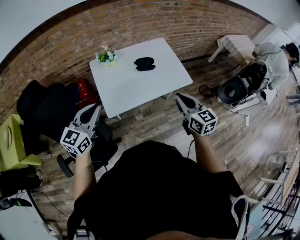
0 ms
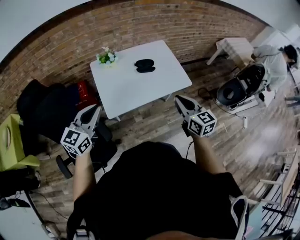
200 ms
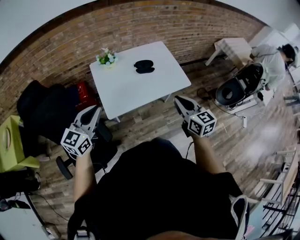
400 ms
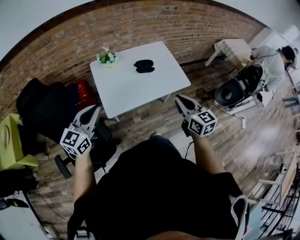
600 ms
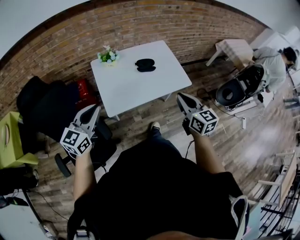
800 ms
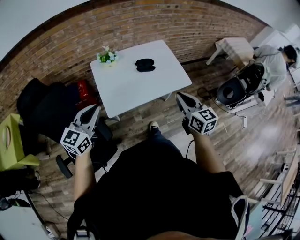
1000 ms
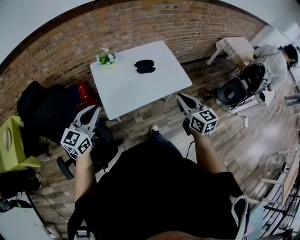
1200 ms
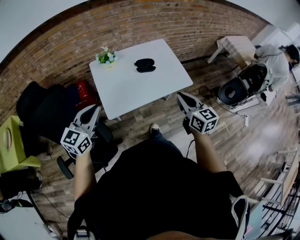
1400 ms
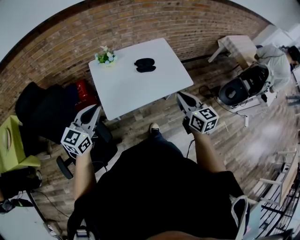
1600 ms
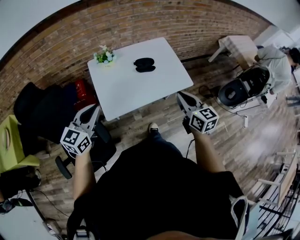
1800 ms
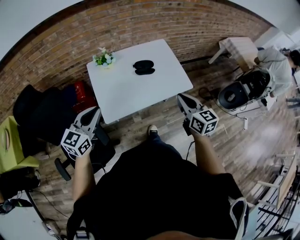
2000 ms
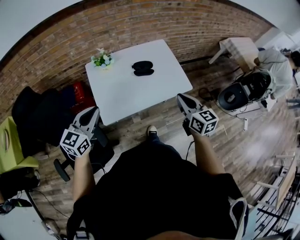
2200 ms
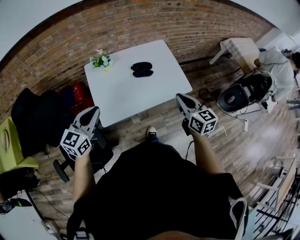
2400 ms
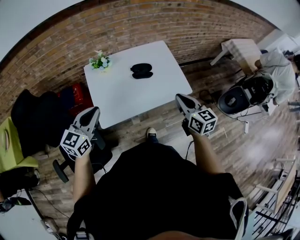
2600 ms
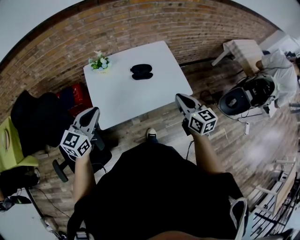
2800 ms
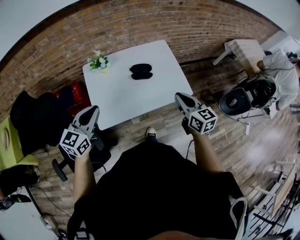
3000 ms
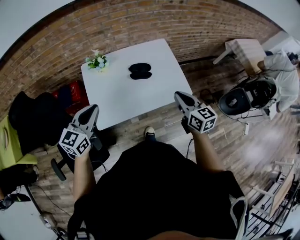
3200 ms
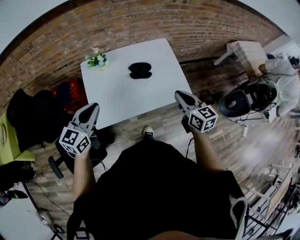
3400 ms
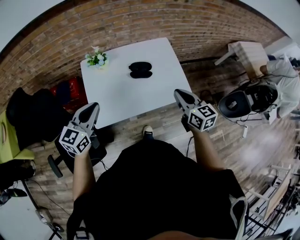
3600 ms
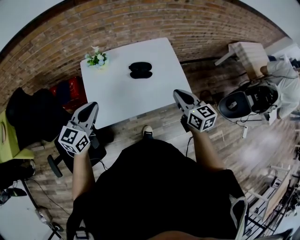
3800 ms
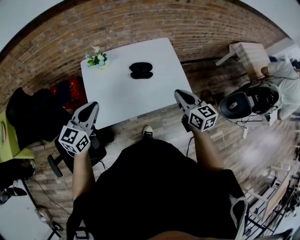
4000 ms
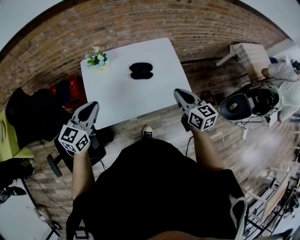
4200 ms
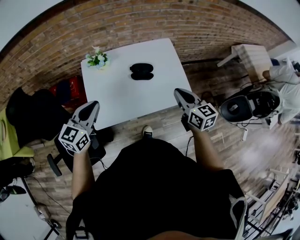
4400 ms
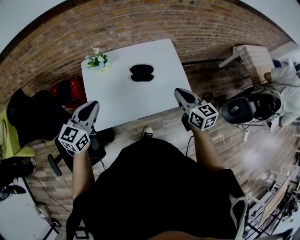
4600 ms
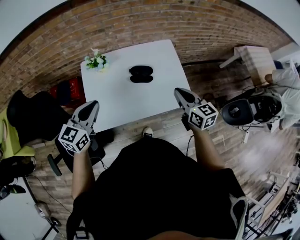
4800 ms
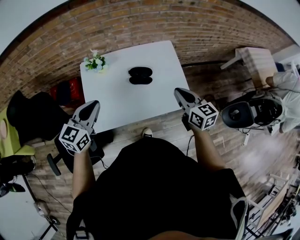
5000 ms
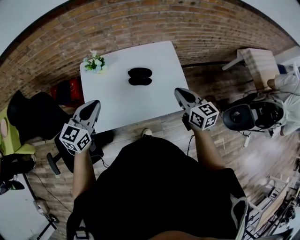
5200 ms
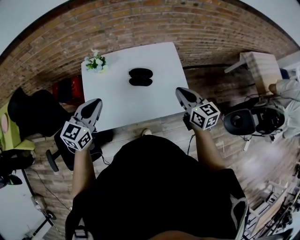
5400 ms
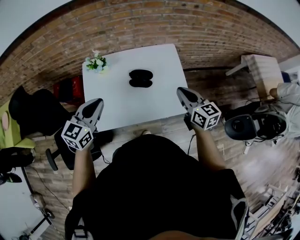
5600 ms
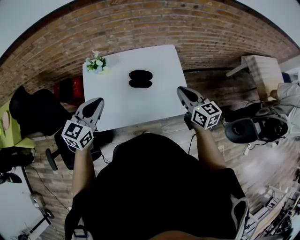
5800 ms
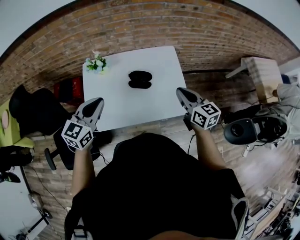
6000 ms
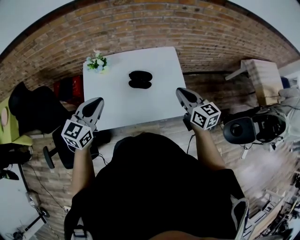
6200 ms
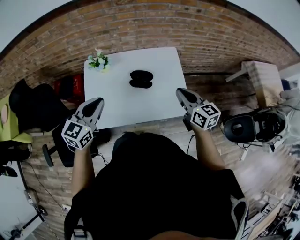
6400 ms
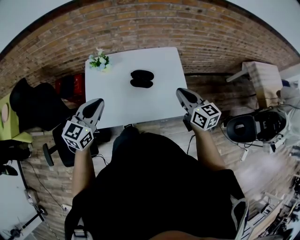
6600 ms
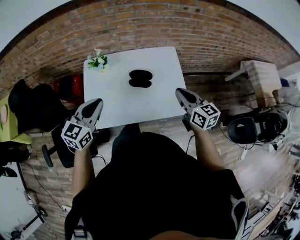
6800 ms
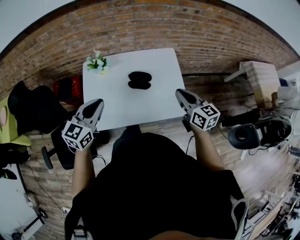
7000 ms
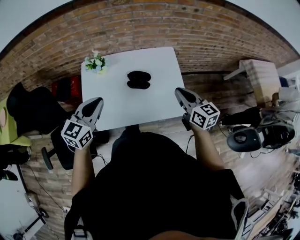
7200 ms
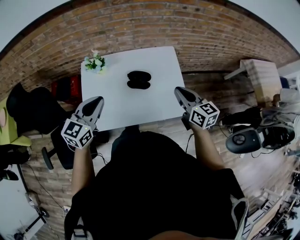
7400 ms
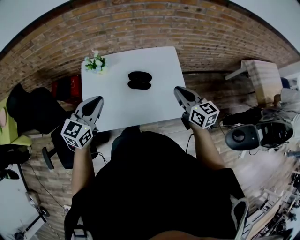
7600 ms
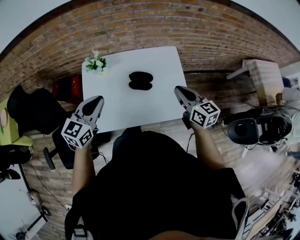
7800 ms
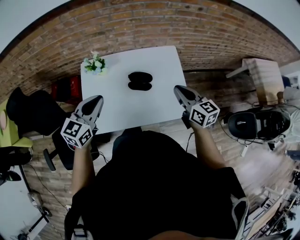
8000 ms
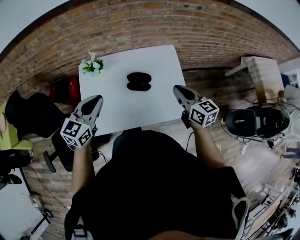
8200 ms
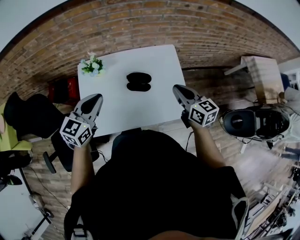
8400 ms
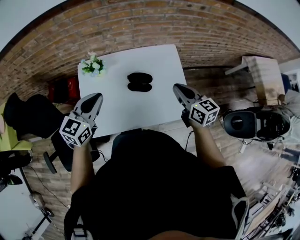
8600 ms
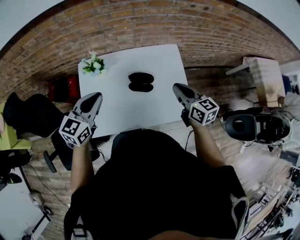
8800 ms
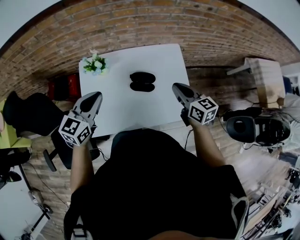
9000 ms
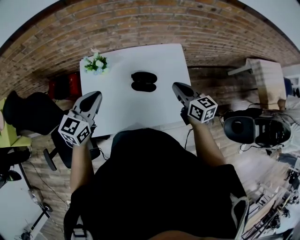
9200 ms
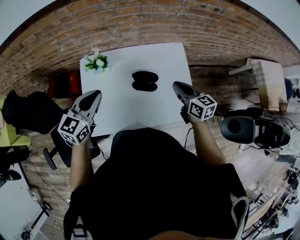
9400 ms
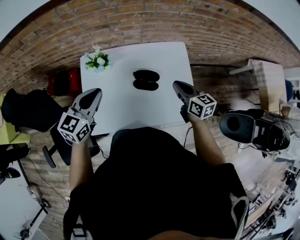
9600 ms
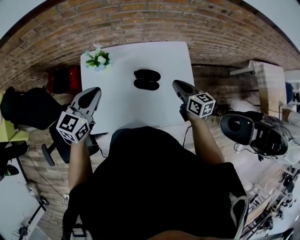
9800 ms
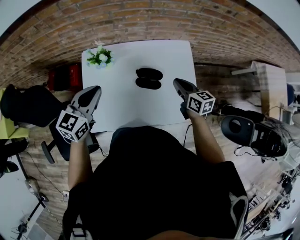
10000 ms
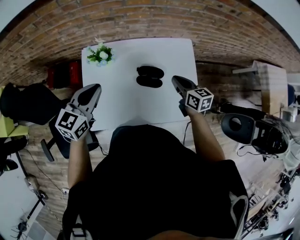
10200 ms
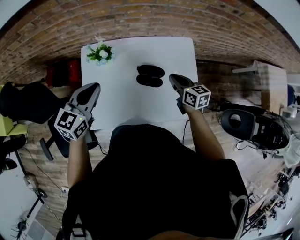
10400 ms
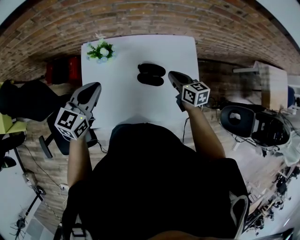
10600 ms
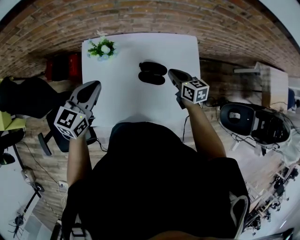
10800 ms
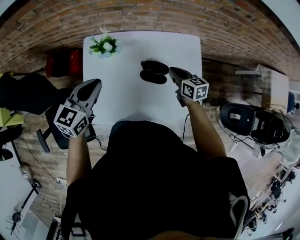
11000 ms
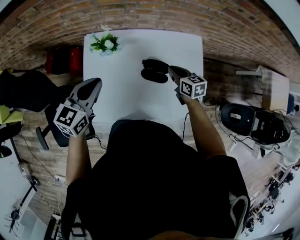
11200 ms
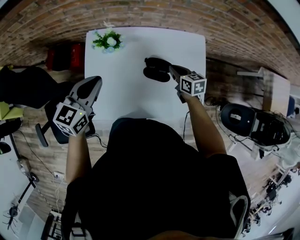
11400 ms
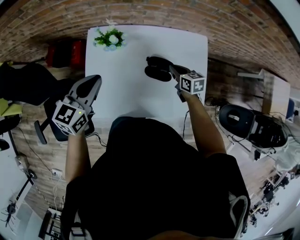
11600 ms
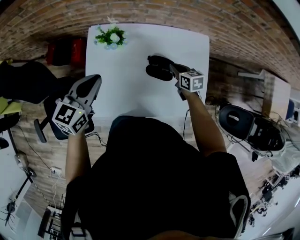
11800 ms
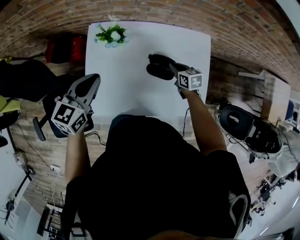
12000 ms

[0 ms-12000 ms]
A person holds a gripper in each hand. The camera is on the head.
0 ms to 1600 ms: The grippers move only a little.
1600 ms to 3000 ms: The grippers both shift forward and to the right by approximately 15 cm.
3000 ms to 4400 ms: The two grippers go approximately 5 cm forward.
4400 ms to 6000 ms: The right gripper goes about 10 cm forward and to the right. Meanwhile the left gripper moves to the right, roughly 10 cm.
6000 ms to 7600 ms: The grippers move only a little.
7600 ms to 9000 ms: Both grippers travel together forward, roughly 10 cm.
9000 ms to 10400 ms: The left gripper moves approximately 5 cm; the right gripper heads downward and forward, covering some 15 cm.
10400 ms to 12000 ms: The left gripper changes place by about 5 cm; the right gripper moves downward, roughly 15 cm.

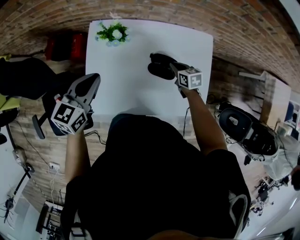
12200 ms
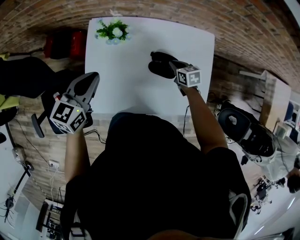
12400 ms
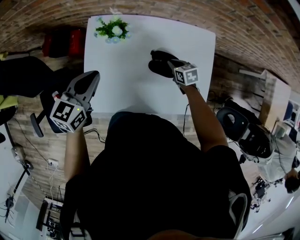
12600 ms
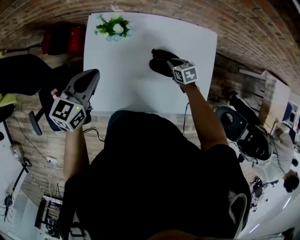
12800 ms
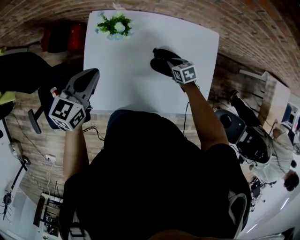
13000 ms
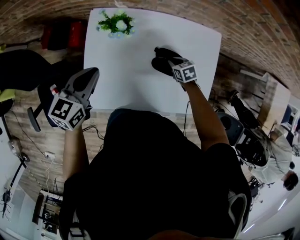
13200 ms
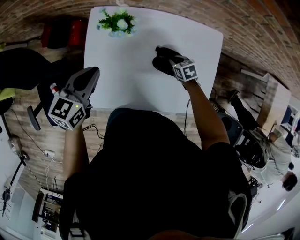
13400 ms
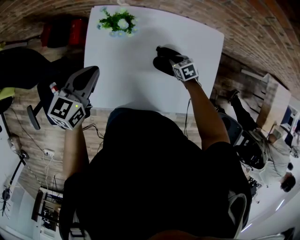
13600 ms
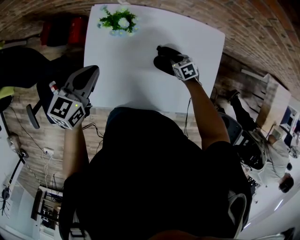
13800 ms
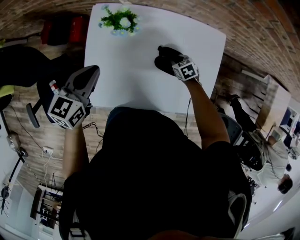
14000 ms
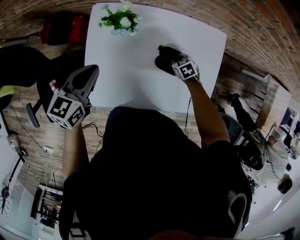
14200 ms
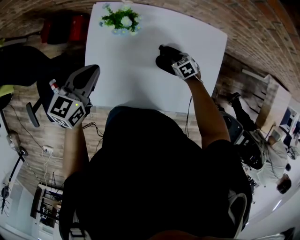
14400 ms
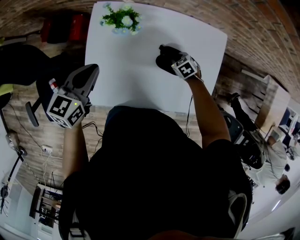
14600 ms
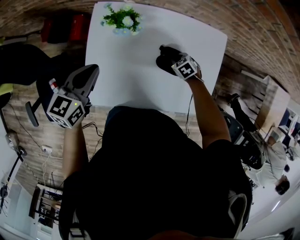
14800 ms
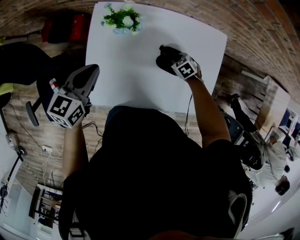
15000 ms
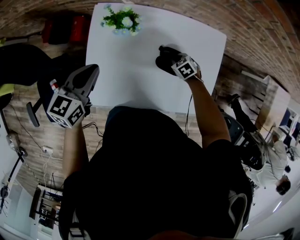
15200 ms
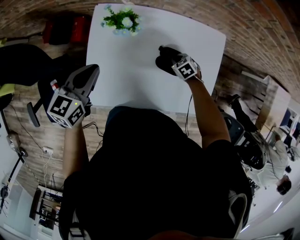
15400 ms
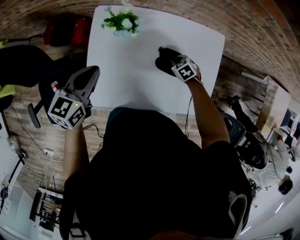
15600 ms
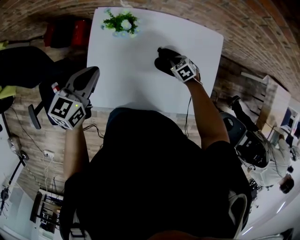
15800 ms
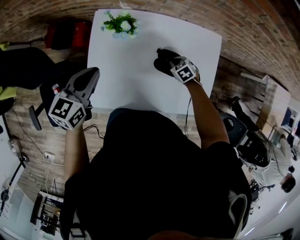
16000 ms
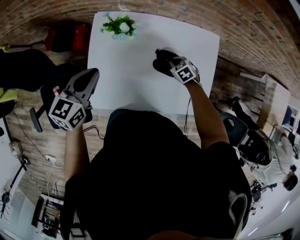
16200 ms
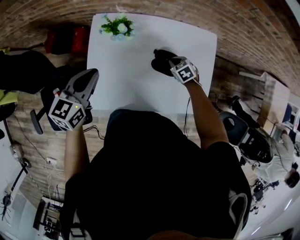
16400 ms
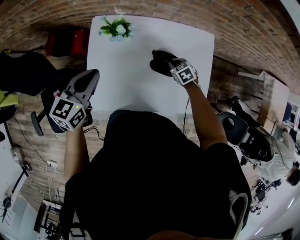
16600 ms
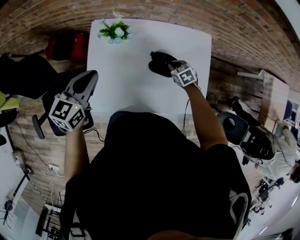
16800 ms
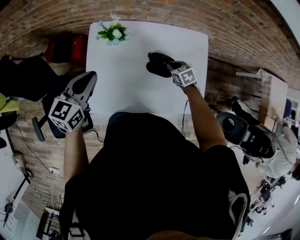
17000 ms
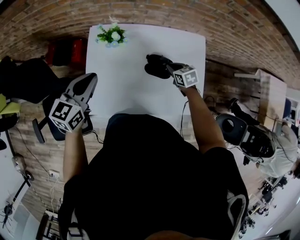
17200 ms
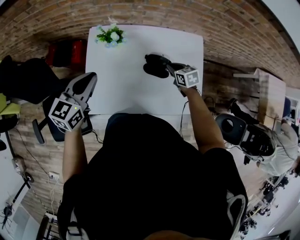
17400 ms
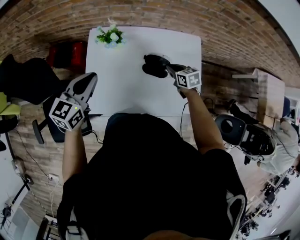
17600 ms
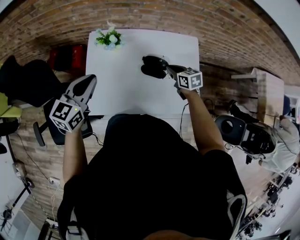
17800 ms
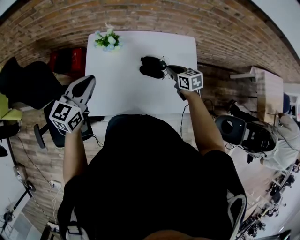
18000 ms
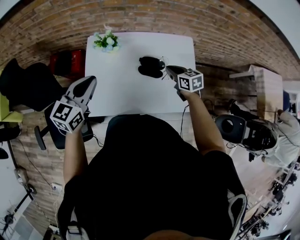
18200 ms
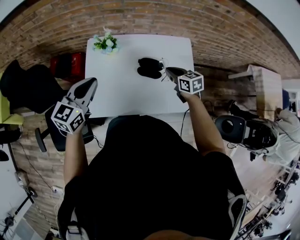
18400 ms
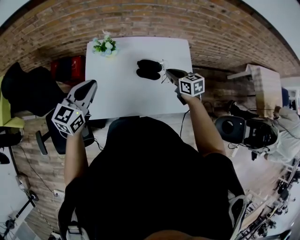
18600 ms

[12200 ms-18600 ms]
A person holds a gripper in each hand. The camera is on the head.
12200 ms to 13800 ms: The right gripper travels downward by about 10 cm, and rotates about 30 degrees; the left gripper travels downward by roughly 5 cm.
13800 ms to 15400 ms: The grippers stay close to where they were, moving slightly.
15400 ms to 17000 ms: The right gripper heads upward, covering some 10 cm, and rotates roughly 20 degrees. Meanwhile the left gripper shifts about 5 cm upward.
17000 ms to 18600 ms: The right gripper goes about 20 cm upward and backward, and swivels roughly 30 degrees. Meanwhile the left gripper shifts approximately 10 cm backward and upward.

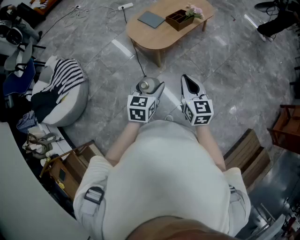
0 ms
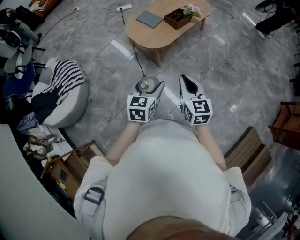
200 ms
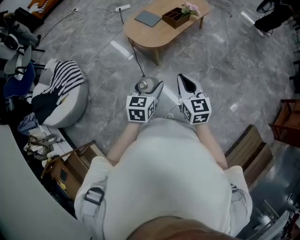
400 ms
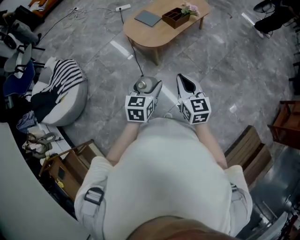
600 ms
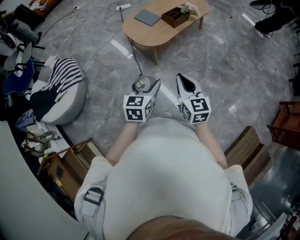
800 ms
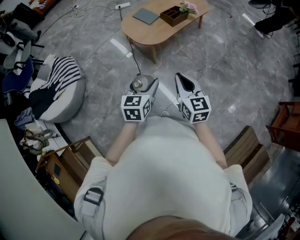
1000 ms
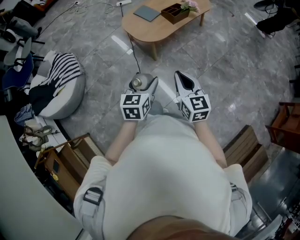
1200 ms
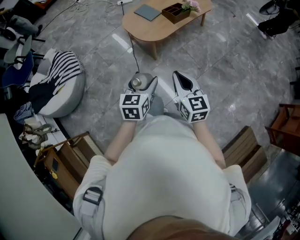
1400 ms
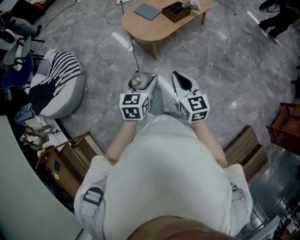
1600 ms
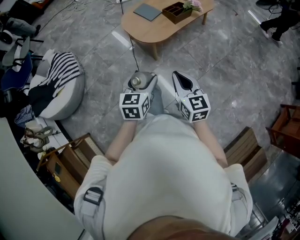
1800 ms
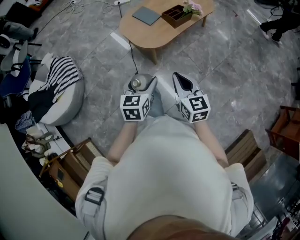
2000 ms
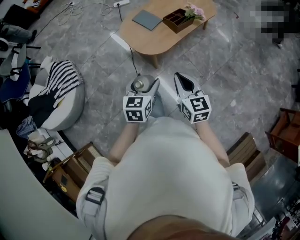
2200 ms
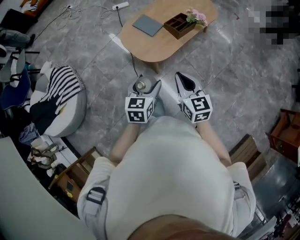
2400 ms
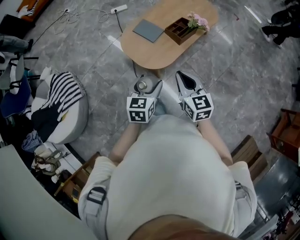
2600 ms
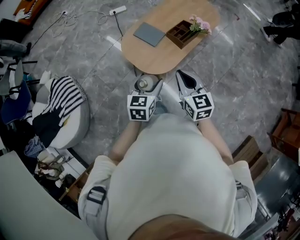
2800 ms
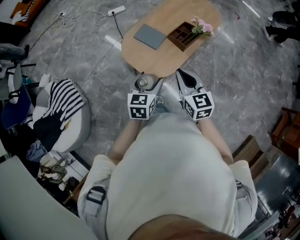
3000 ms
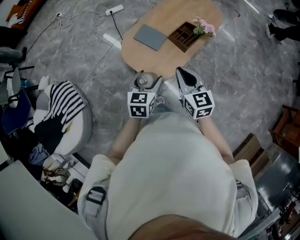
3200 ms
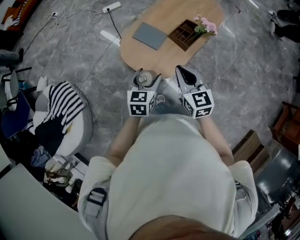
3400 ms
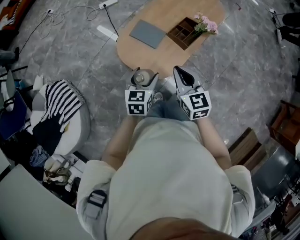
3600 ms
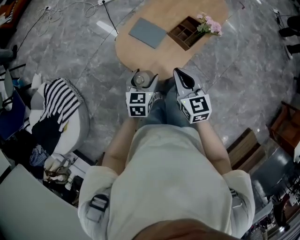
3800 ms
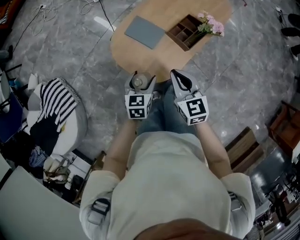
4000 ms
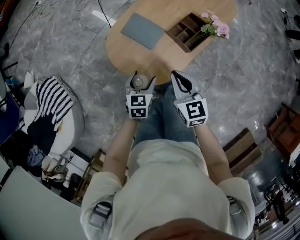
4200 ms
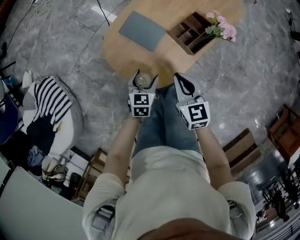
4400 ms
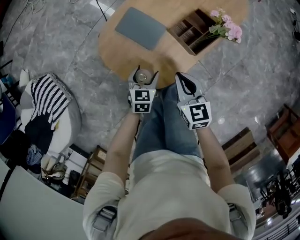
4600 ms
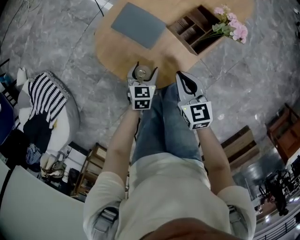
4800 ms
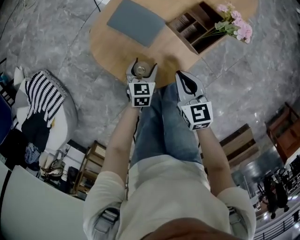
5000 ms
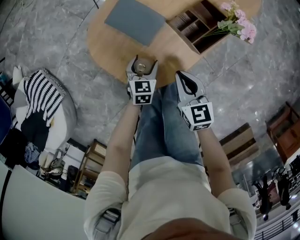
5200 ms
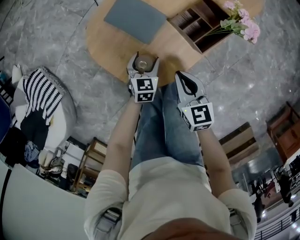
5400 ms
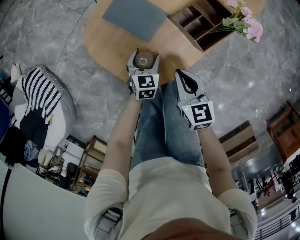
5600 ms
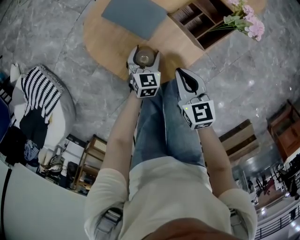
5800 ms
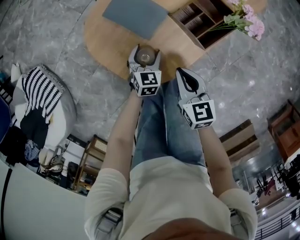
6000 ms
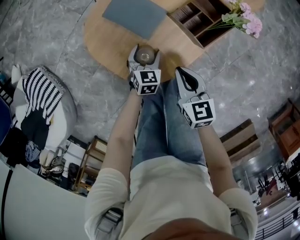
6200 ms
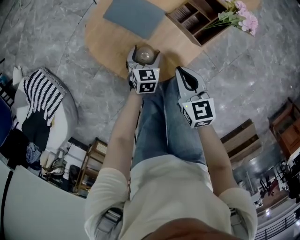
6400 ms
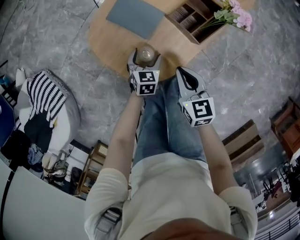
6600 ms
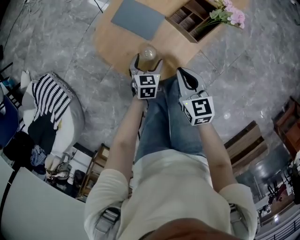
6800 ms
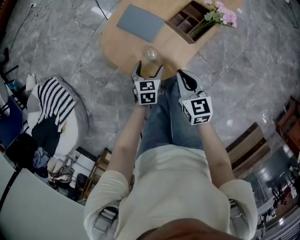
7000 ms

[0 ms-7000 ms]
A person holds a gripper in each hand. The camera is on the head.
0 ms to 1400 ms: There are only small adjustments of the grippers.
1400 ms to 2800 ms: Both grippers move forward, approximately 35 cm.
2800 ms to 4200 ms: The left gripper moves downward and forward, some 25 cm, while the right gripper heads forward and downward, covering about 25 cm.
4200 ms to 5600 ms: Both grippers move downward, roughly 20 cm.
5600 ms to 7000 ms: The left gripper moves upward and backward, about 10 cm, while the right gripper goes roughly 10 cm upward.
